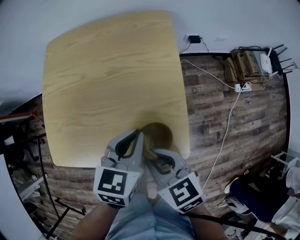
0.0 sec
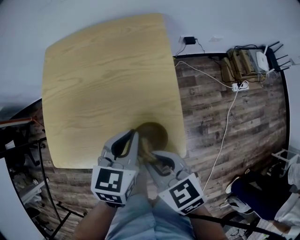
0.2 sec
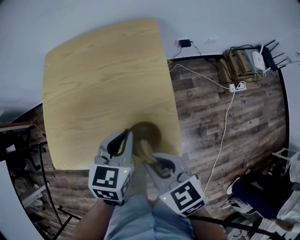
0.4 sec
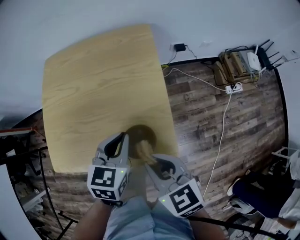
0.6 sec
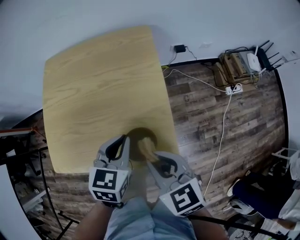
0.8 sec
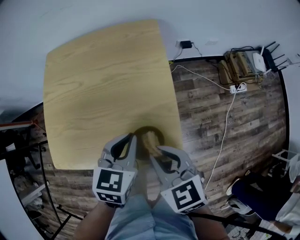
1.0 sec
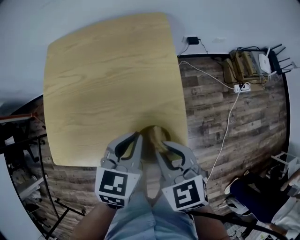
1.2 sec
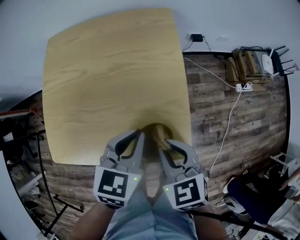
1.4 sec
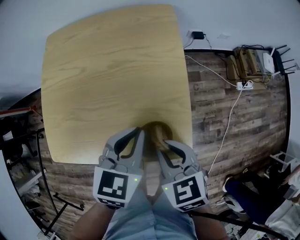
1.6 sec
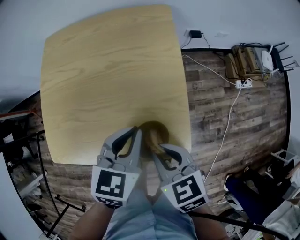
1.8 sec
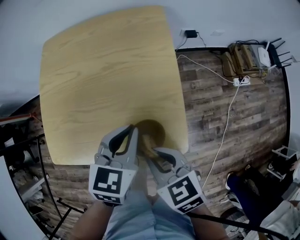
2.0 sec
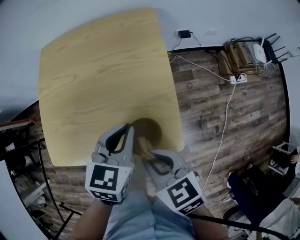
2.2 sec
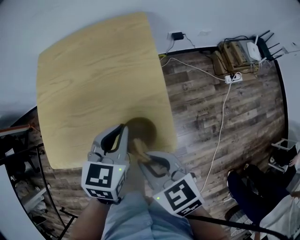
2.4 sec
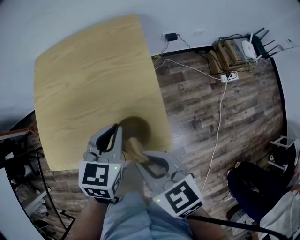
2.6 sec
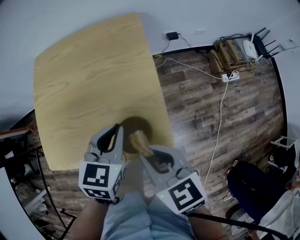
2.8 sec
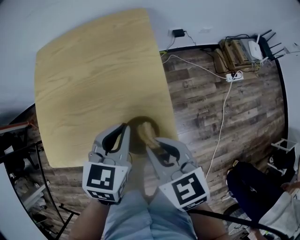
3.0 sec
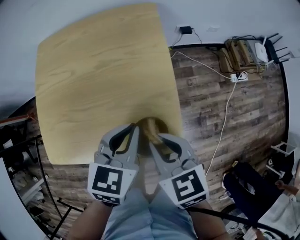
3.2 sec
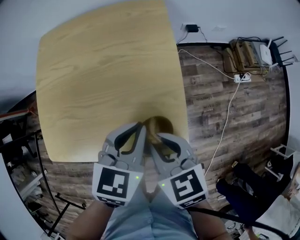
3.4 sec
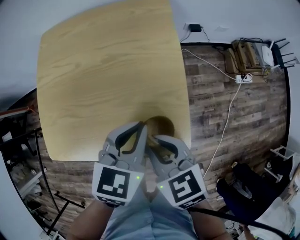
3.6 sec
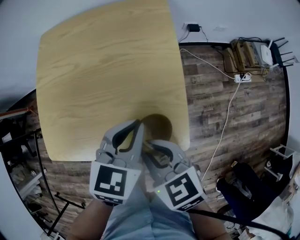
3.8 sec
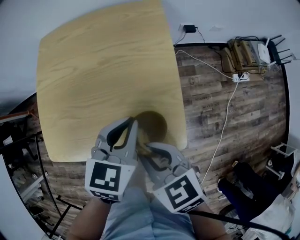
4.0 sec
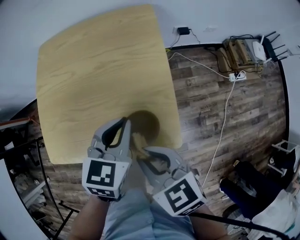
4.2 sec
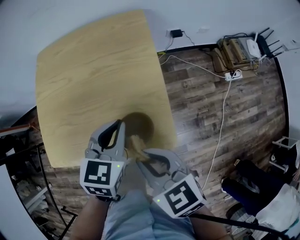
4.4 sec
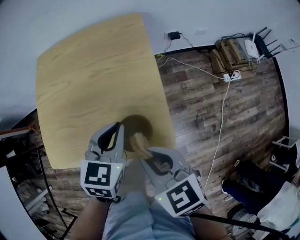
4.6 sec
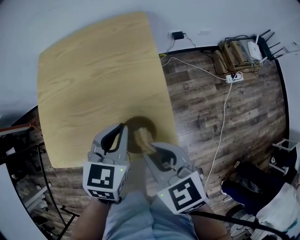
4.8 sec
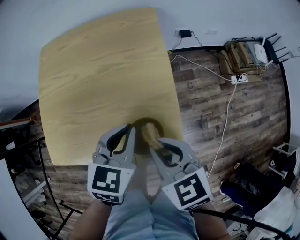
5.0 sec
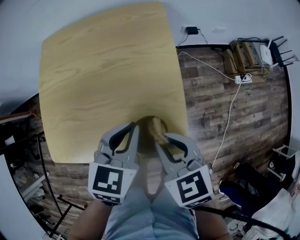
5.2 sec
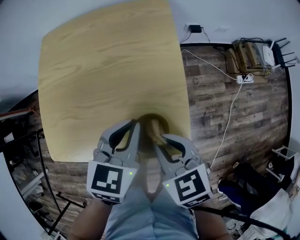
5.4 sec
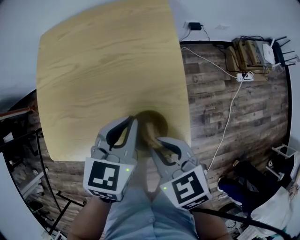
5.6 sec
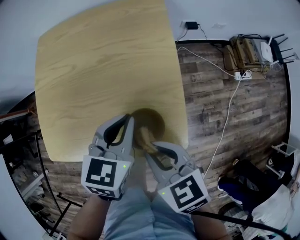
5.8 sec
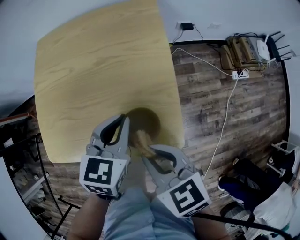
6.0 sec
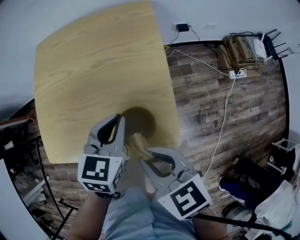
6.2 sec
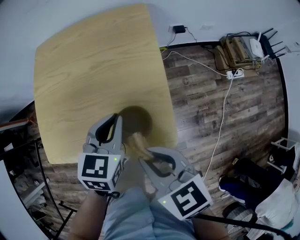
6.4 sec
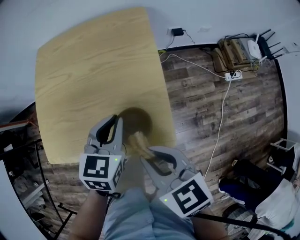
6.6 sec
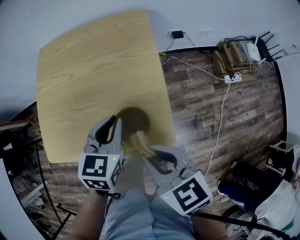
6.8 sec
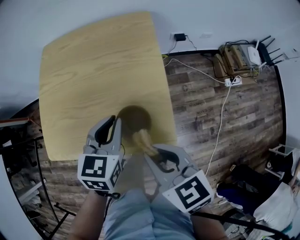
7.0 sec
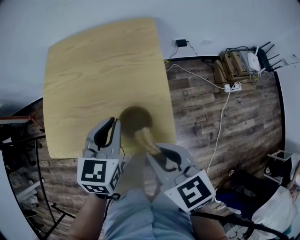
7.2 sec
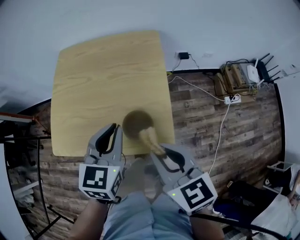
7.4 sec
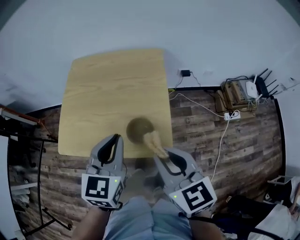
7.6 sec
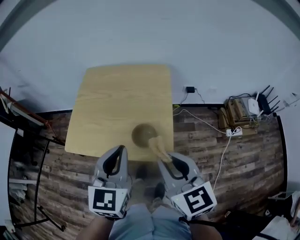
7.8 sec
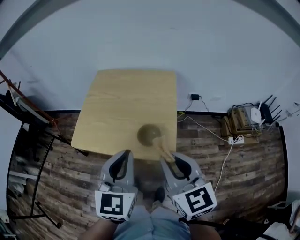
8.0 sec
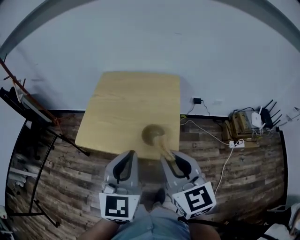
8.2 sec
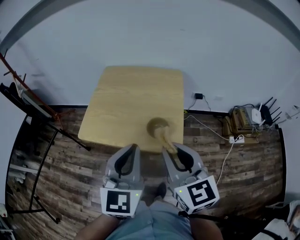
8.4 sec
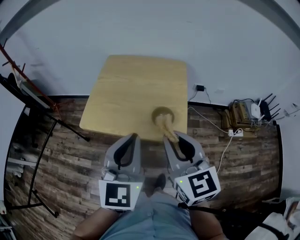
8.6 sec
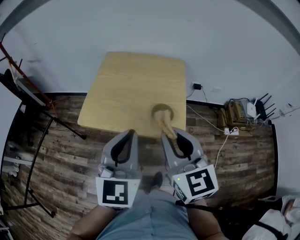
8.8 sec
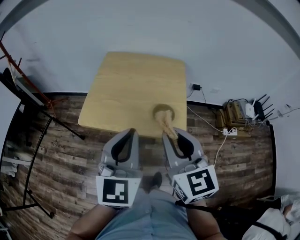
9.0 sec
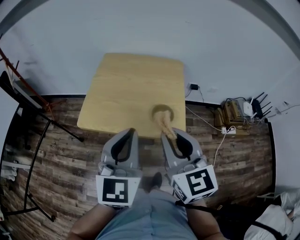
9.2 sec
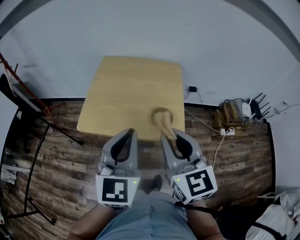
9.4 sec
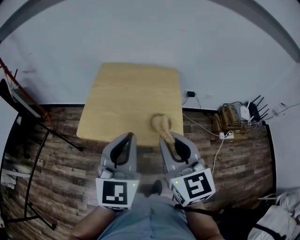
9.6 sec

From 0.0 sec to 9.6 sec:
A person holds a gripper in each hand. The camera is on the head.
From 0.0 sec to 1.6 sec: There are only small adjustments of the grippers.
From 3.2 sec to 6.4 sec: The grippers make only small movements.
From 6.4 sec to 8.0 sec: The left gripper heads upward and backward, covering approximately 25 cm, and rotates approximately 30 degrees; the right gripper travels upward and backward by about 15 cm, and rotates approximately 30 degrees.
From 8.0 sec to 9.6 sec: The grippers both shift to the left by roughly 10 cm.

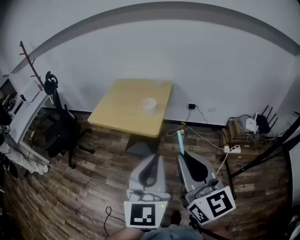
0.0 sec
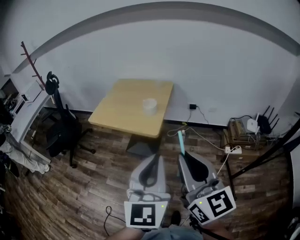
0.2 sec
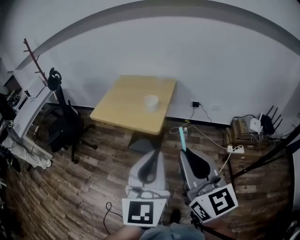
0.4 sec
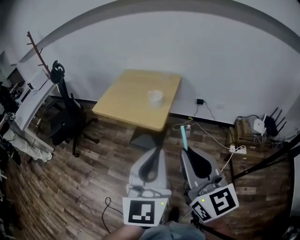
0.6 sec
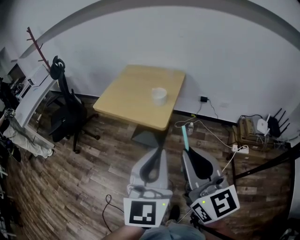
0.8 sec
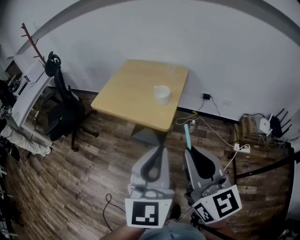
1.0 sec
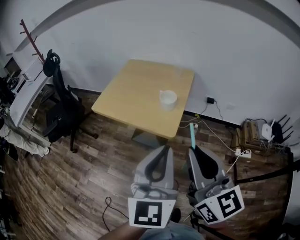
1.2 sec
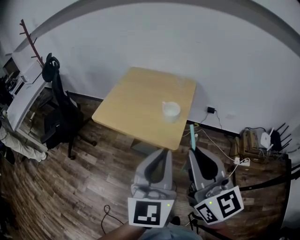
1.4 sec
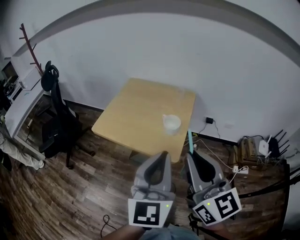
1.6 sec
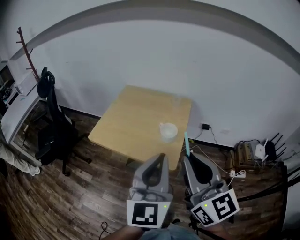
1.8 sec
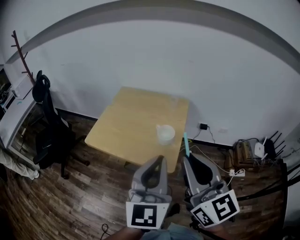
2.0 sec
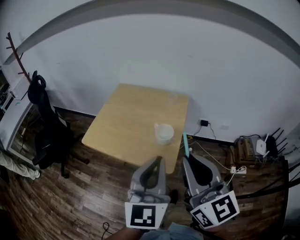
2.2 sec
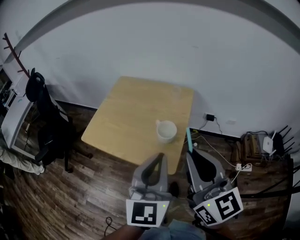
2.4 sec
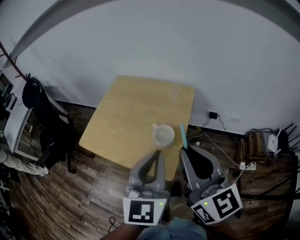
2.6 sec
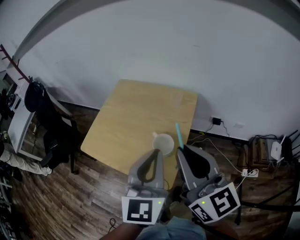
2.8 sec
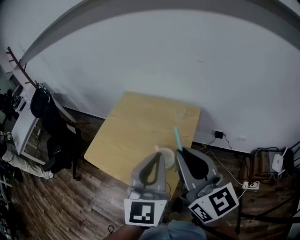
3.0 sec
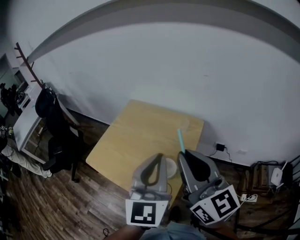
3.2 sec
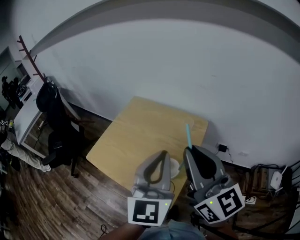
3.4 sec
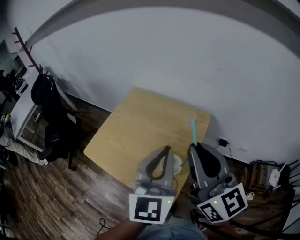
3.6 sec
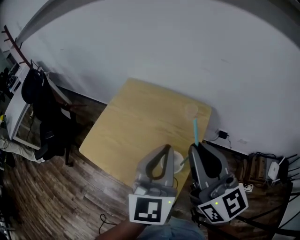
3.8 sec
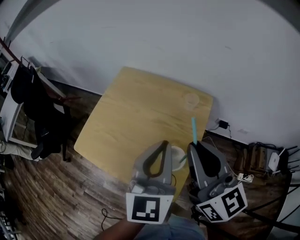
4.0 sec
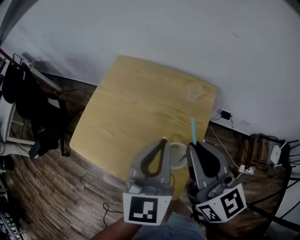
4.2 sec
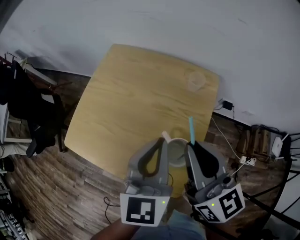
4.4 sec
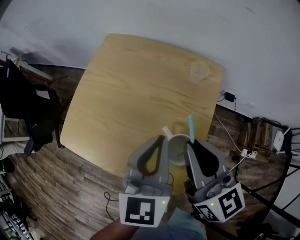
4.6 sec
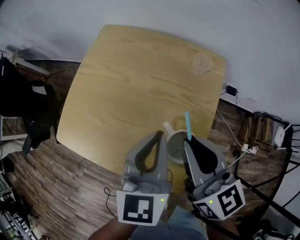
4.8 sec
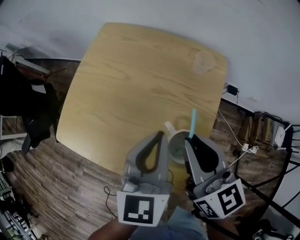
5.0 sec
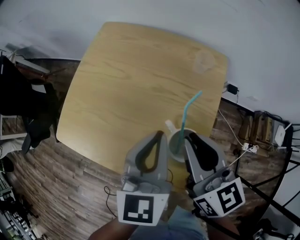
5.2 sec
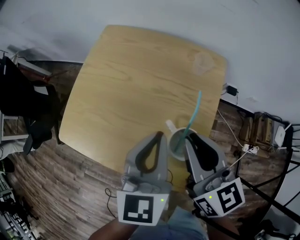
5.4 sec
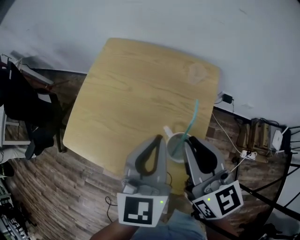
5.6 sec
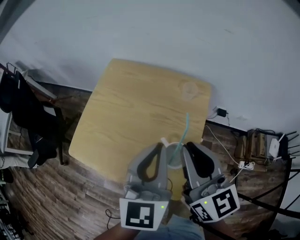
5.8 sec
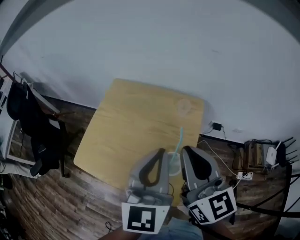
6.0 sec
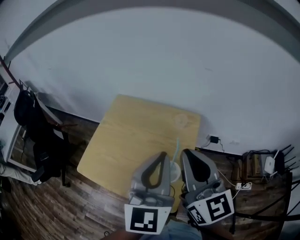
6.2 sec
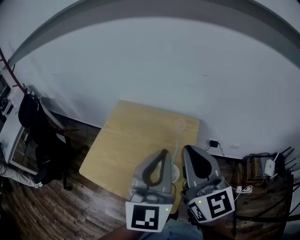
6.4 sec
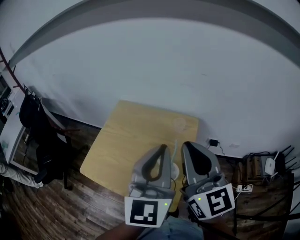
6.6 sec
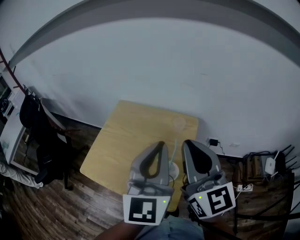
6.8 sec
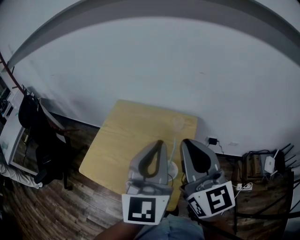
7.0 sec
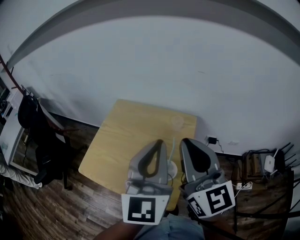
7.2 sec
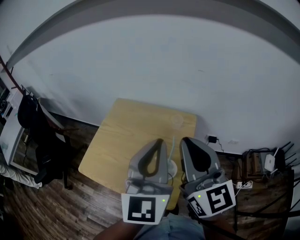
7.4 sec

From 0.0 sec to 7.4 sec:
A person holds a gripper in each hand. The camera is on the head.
From 0.0 sec to 1.4 sec: Both grippers move forward, roughly 20 cm.
From 1.4 sec to 3.0 sec: Both grippers travel together forward, some 25 cm.
From 3.0 sec to 4.4 sec: The two grippers go roughly 15 cm downward and forward.
From 4.4 sec to 6.0 sec: Both grippers travel together upward, some 10 cm.
From 6.0 sec to 7.4 sec: Both grippers move upward, approximately 10 cm.

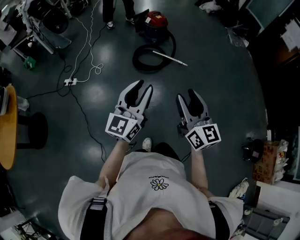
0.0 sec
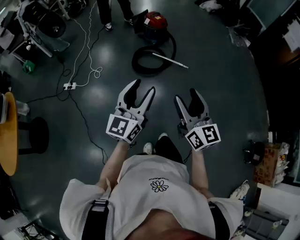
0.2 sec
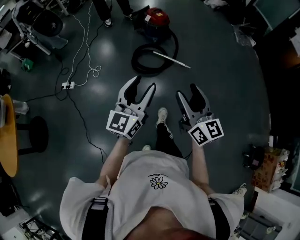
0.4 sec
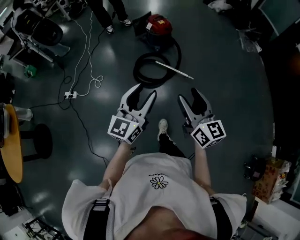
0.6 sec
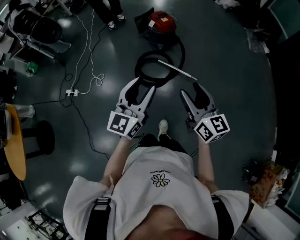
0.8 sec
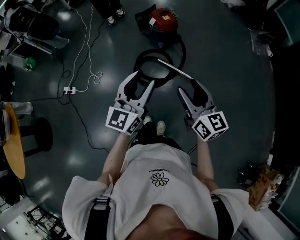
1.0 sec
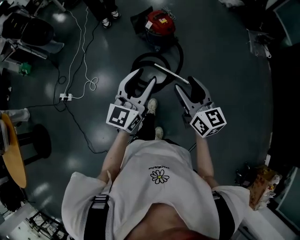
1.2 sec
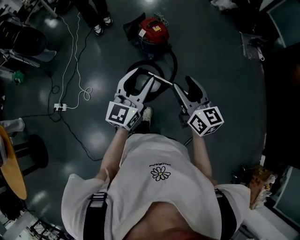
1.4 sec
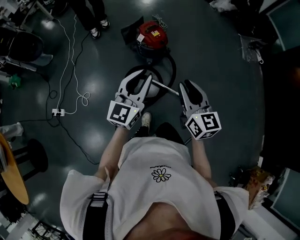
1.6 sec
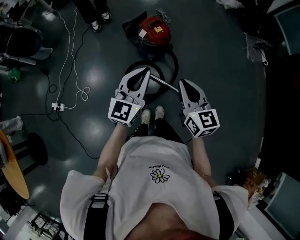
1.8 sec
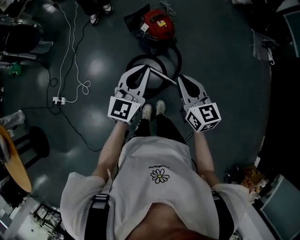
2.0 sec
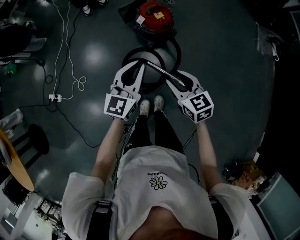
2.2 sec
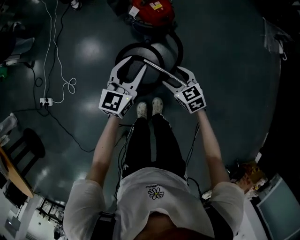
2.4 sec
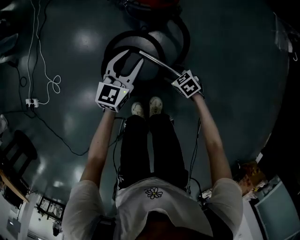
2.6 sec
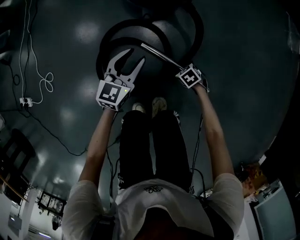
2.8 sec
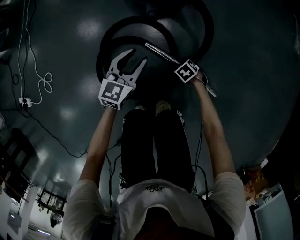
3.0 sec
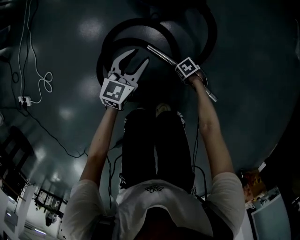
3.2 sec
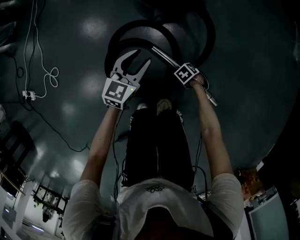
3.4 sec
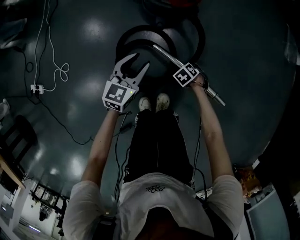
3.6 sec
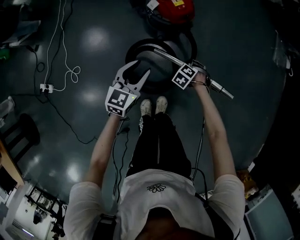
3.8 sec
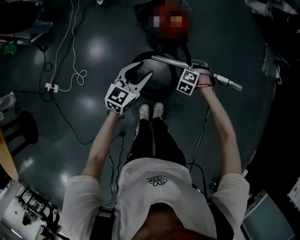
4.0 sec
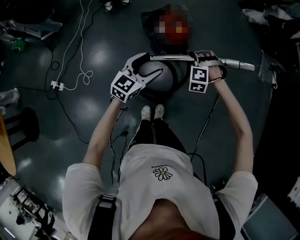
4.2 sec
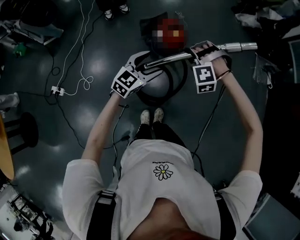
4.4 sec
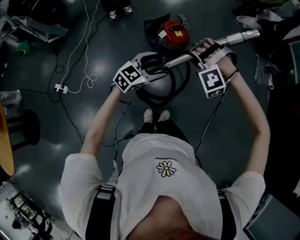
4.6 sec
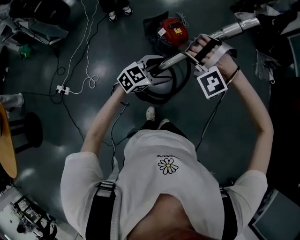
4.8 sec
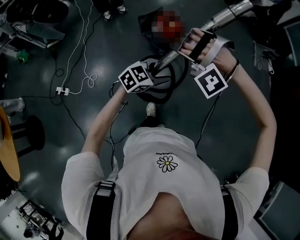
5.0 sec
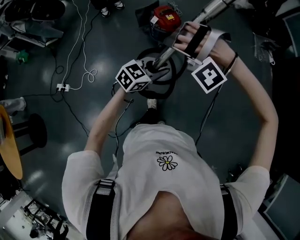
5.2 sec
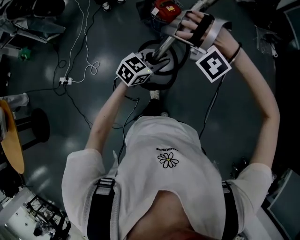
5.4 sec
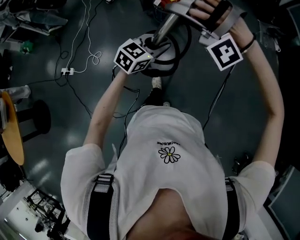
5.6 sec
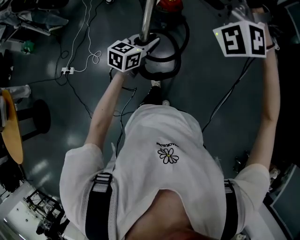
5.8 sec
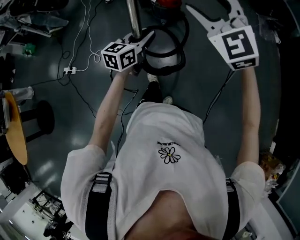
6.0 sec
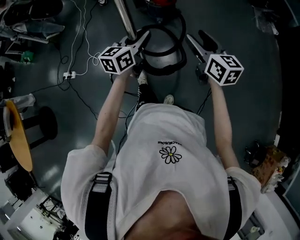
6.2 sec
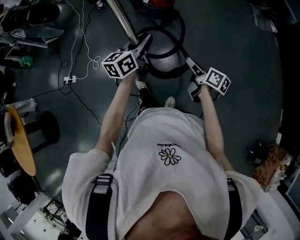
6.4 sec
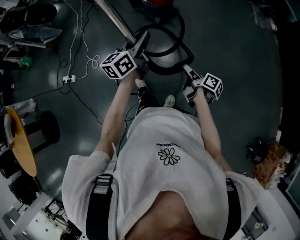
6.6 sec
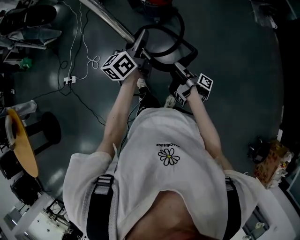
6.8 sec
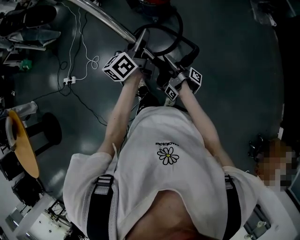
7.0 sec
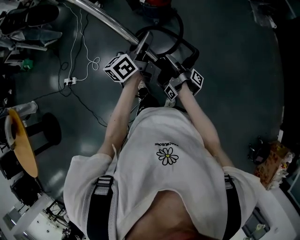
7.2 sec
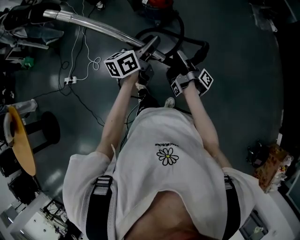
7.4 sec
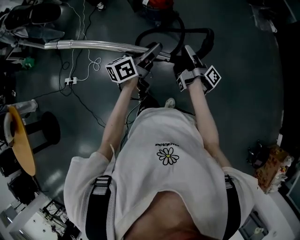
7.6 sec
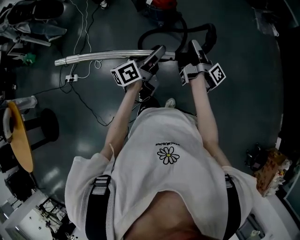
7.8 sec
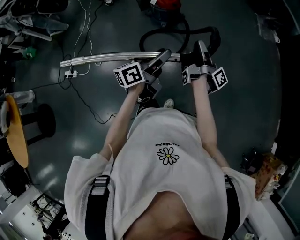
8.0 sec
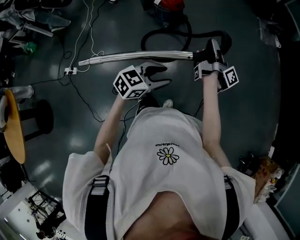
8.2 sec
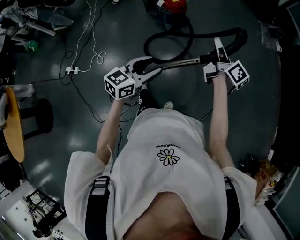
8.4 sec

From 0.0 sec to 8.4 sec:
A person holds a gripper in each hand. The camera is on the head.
From 0.0 sec to 1.4 sec: Both grippers are carried forward, about 70 cm.
From 1.4 sec to 2.8 sec: The grippers both shift downward by approximately 80 cm. The left gripper rotates about 30 degrees, and closes, then reopens; the right gripper points its fingers roughly 60 degrees further downward, and closes and opens again.
From 2.8 sec to 4.2 sec: The two grippers go approximately 60 cm upward. The left gripper opens its fingers. Meanwhile the right gripper rotates around the line of its fingers by approximately 70 degrees, counterclockwise from behind, and closes.
From 4.2 sec to 5.6 sec: The right gripper travels backward and upward by roughly 40 cm, and tilts its fingers approximately 30 degrees upward. Meanwhile the left gripper is displaced backward and to the right by some 30 cm, and closes up.
From 5.6 sec to 7.0 sec: The left gripper rotates about 60 degrees; the right gripper swings up and down, approximately 40 cm each way, with 2 reversals, and rotates around the line of its fingers by about 110 degrees, counterclockwise from behind.
From 7.0 sec to 8.4 sec: The right gripper moves approximately 25 cm, twists roughly 70 degrees counterclockwise, seen from behind, and closes its fingers. The left gripper changes place by roughly 15 cm, and swivels approximately 40 degrees.
